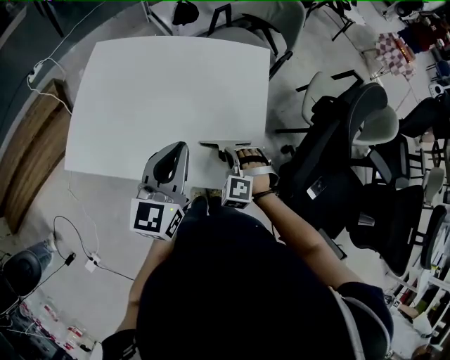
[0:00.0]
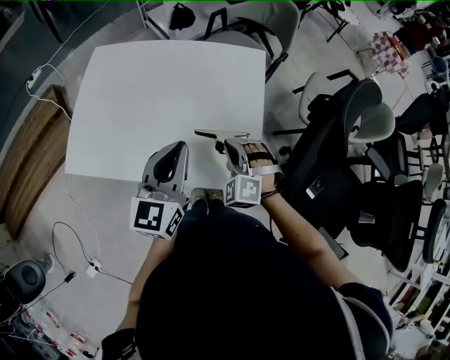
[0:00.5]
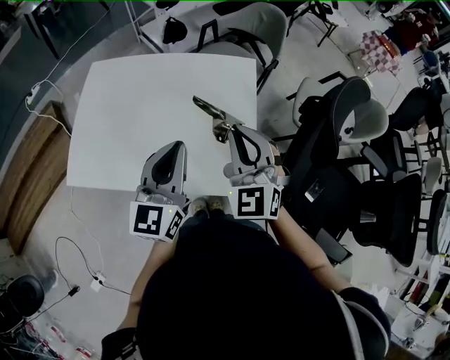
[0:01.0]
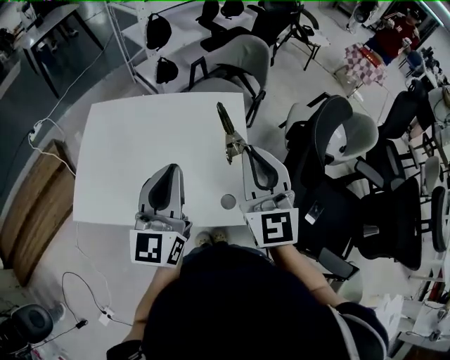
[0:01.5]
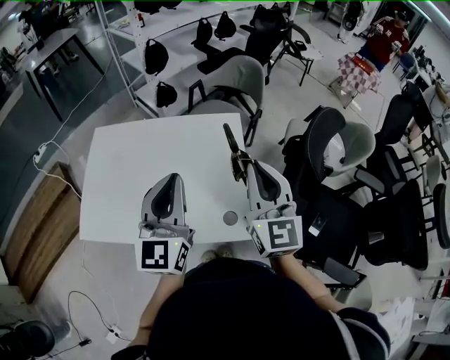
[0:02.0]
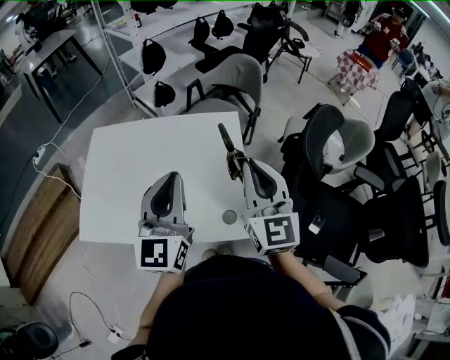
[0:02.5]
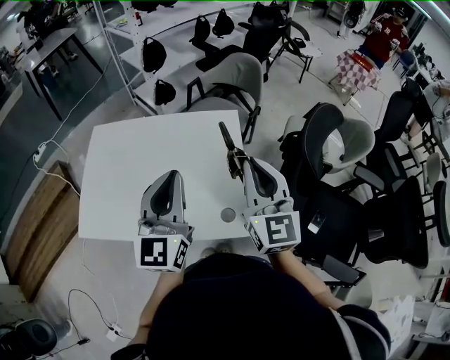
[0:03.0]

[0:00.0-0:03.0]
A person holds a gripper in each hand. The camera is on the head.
0:00.0 to 0:01.5: The right gripper moves upward, approximately 35 cm, and points its fingers about 50 degrees further upward; the left gripper goes some 10 cm upward.
0:01.5 to 0:03.0: The grippers make only small movements.

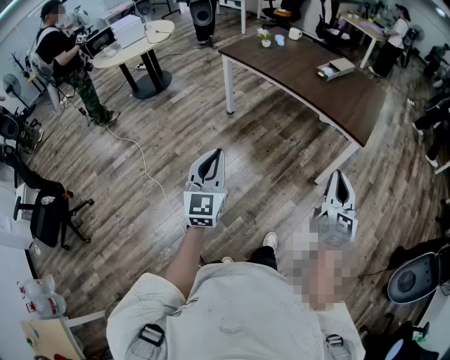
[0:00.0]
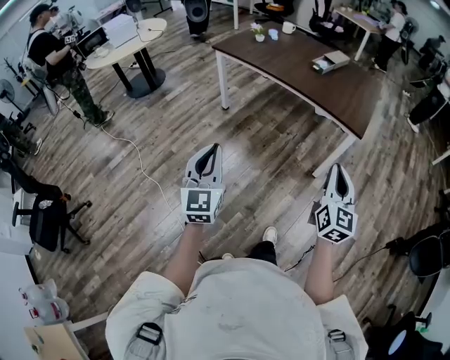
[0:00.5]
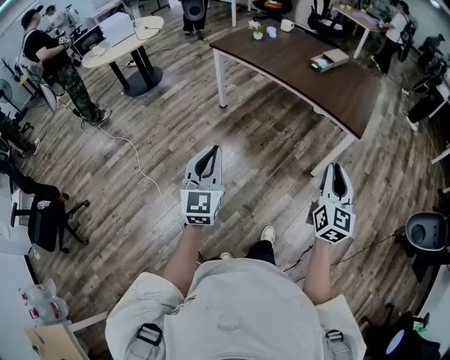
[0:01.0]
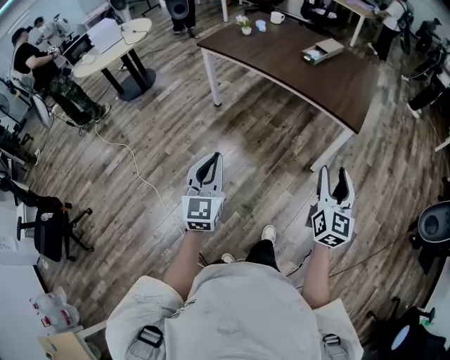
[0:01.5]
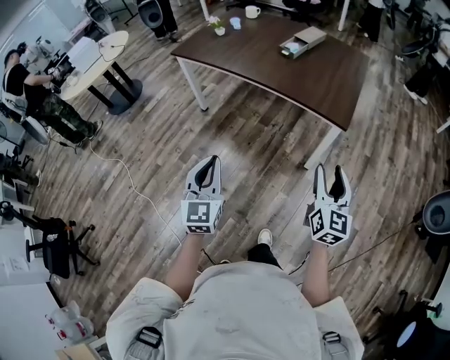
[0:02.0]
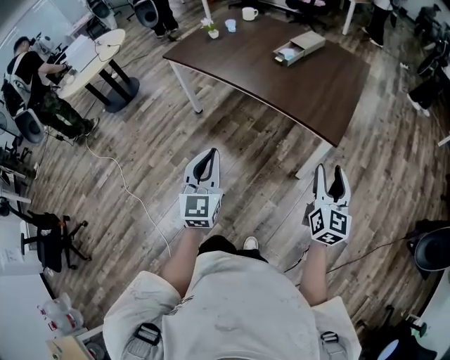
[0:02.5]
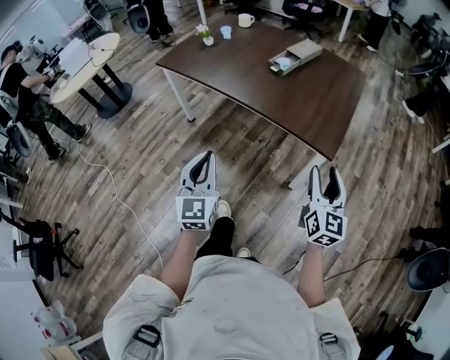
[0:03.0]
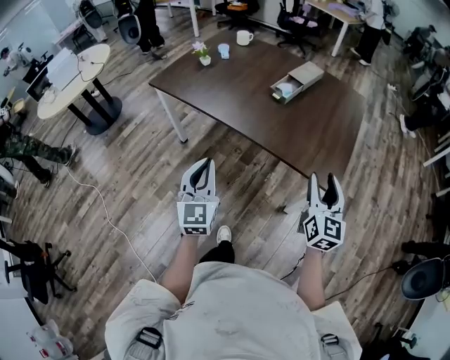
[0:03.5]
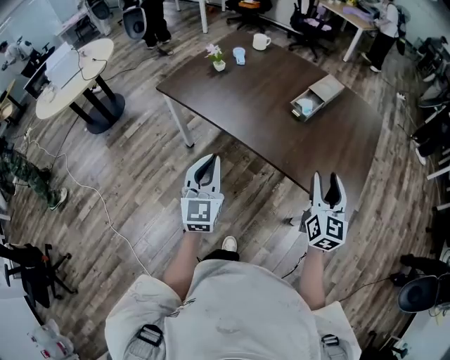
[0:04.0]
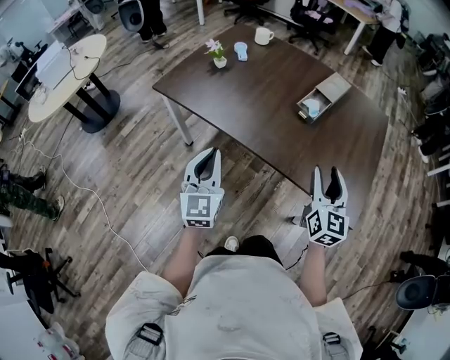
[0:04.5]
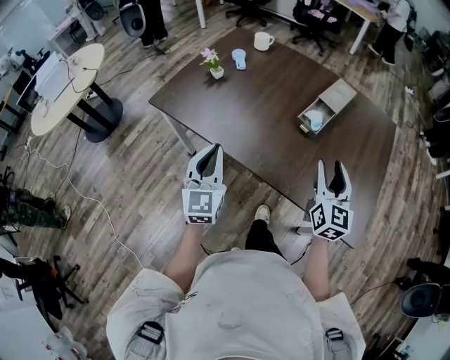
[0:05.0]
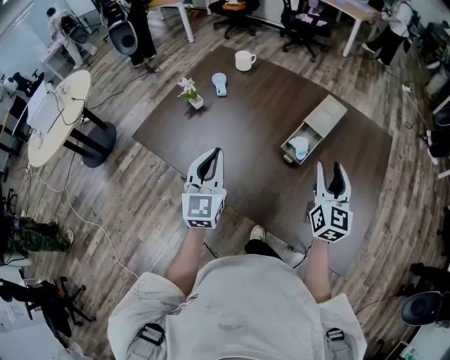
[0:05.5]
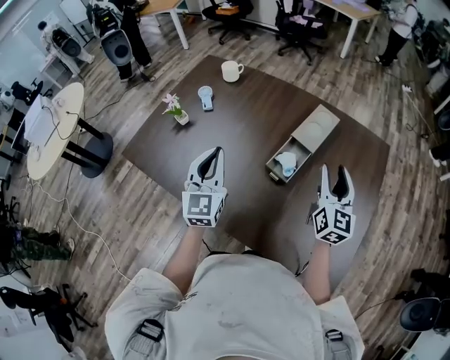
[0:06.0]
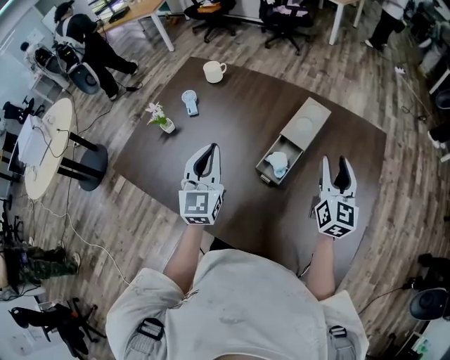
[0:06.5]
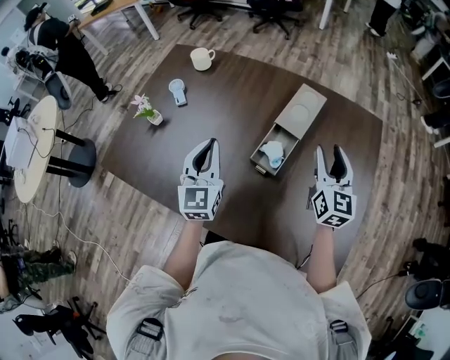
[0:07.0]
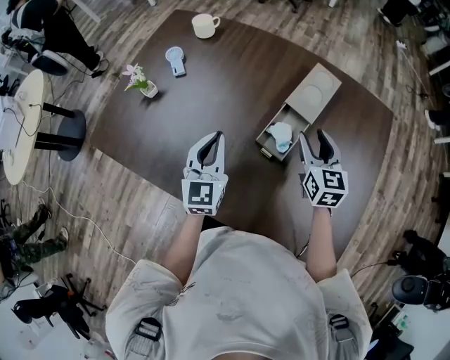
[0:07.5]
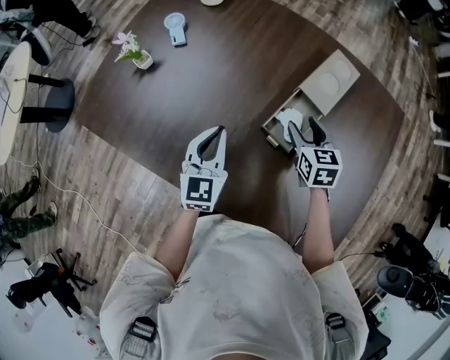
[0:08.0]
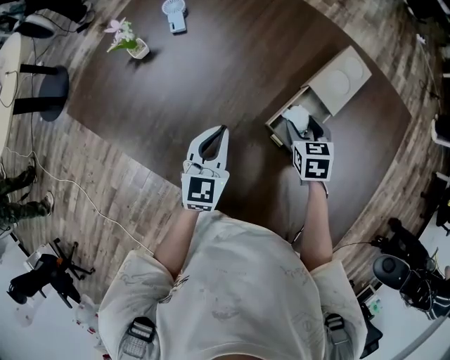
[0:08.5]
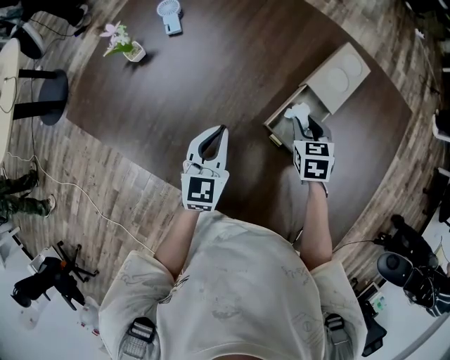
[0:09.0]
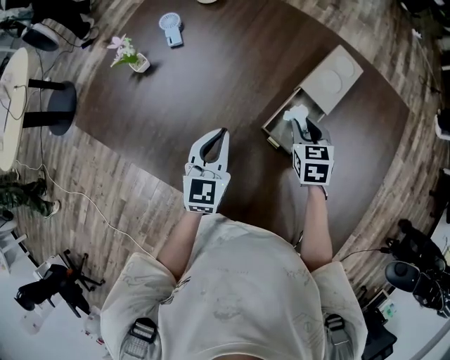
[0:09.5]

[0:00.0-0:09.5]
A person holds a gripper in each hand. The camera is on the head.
0:00.0 to 0:02.0: The right gripper travels to the right and forward by about 20 cm, and opens up. Meanwhile the left gripper travels forward and to the right by roughly 20 cm.
0:02.0 to 0:04.0: The pair of grippers is taken forward, about 40 cm.
0:04.0 to 0:05.5: The grippers both shift forward by about 30 cm.
0:05.5 to 0:07.5: The right gripper shifts some 20 cm forward and downward, and swivels about 20 degrees; the left gripper travels forward, downward and to the right by approximately 20 cm.
0:07.5 to 0:09.5: The right gripper goes approximately 10 cm downward, changes its angle by roughly 20 degrees, and closes its fingers. Meanwhile the left gripper goes approximately 5 cm downward.

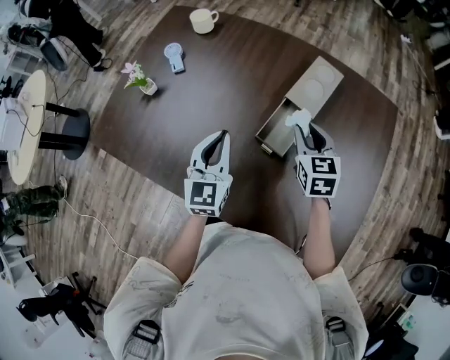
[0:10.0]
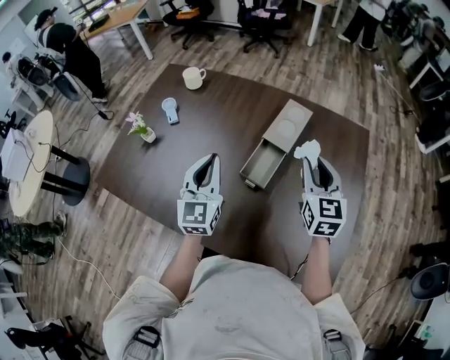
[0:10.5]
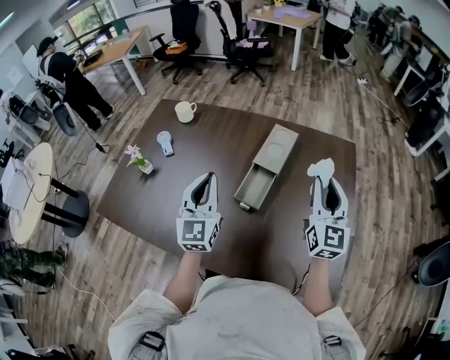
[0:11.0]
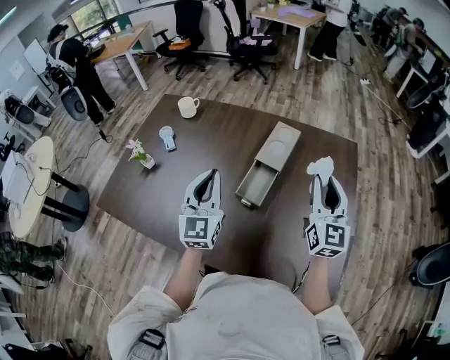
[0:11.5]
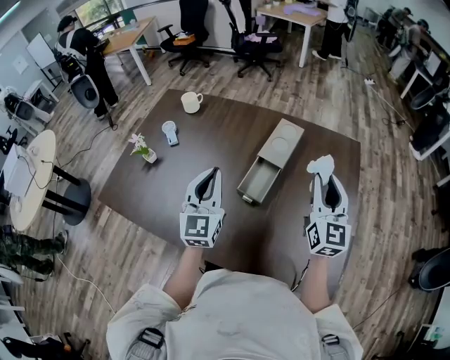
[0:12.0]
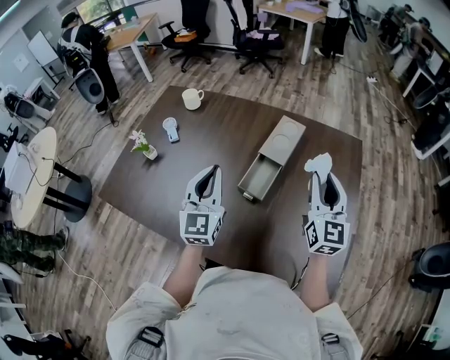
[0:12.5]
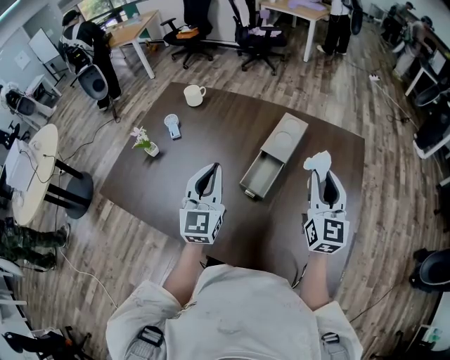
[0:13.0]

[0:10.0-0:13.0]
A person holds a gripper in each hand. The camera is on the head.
0:10.0 to 0:11.5: The right gripper travels upward, to the right and backward by some 25 cm, and points its fingers some 40 degrees further upward, while the left gripper goes roughly 10 cm upward.
0:11.5 to 0:13.0: The grippers stay close to where they were, moving slightly.

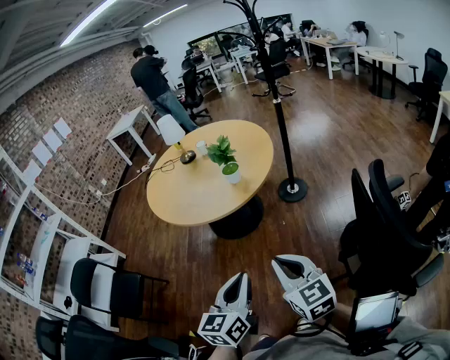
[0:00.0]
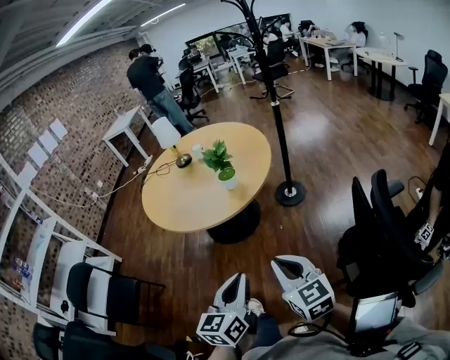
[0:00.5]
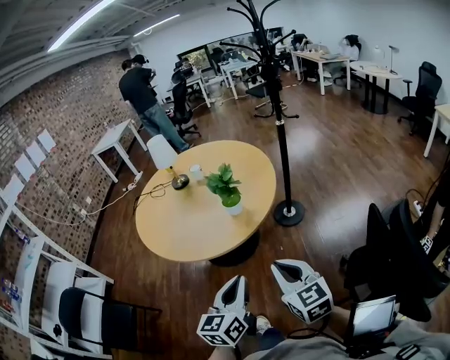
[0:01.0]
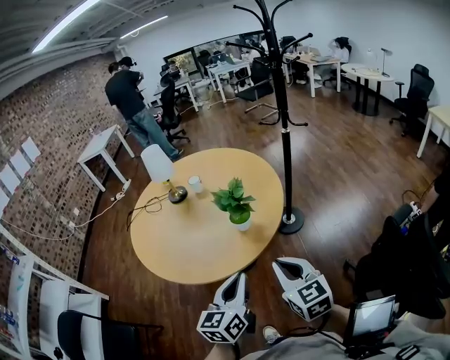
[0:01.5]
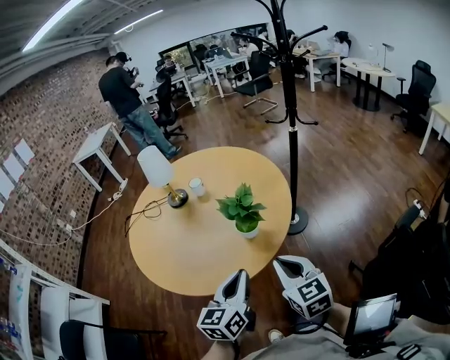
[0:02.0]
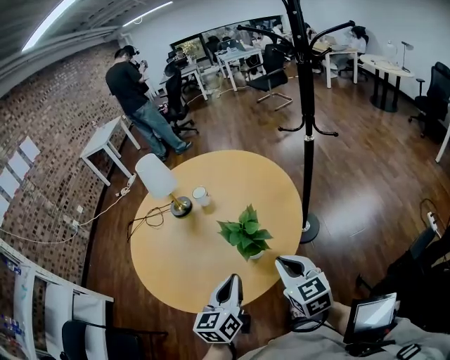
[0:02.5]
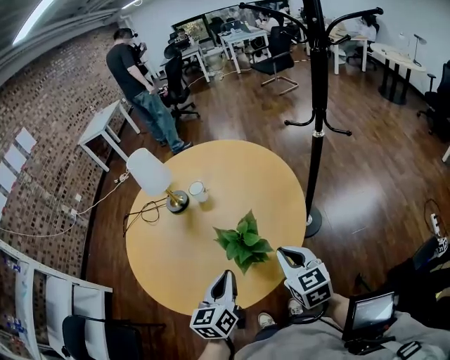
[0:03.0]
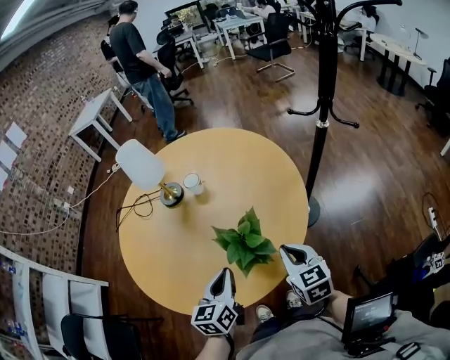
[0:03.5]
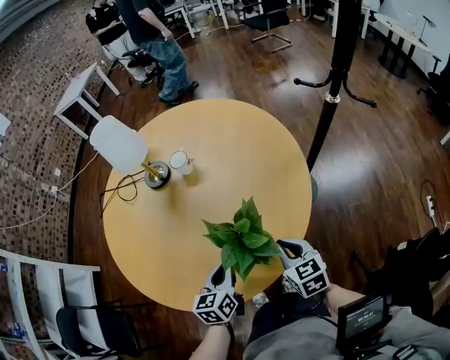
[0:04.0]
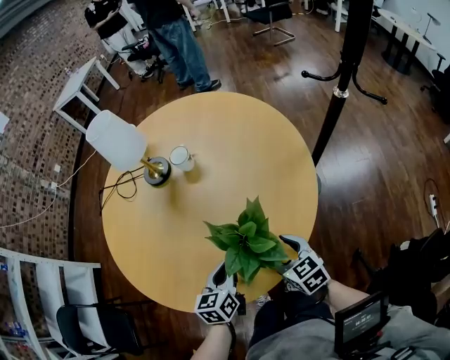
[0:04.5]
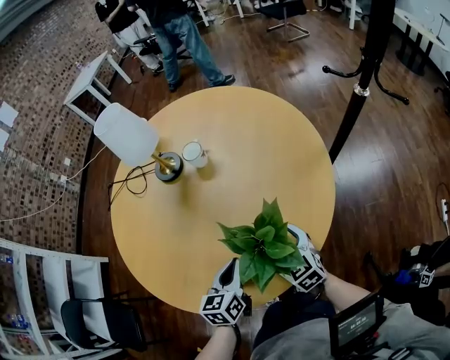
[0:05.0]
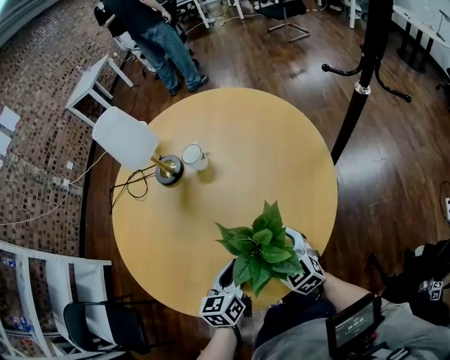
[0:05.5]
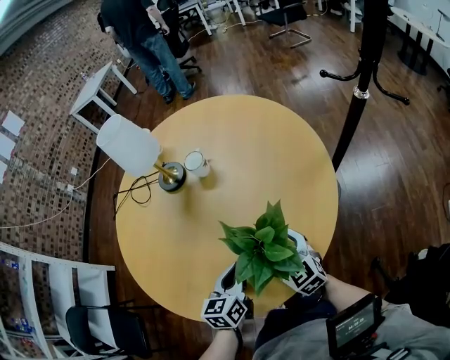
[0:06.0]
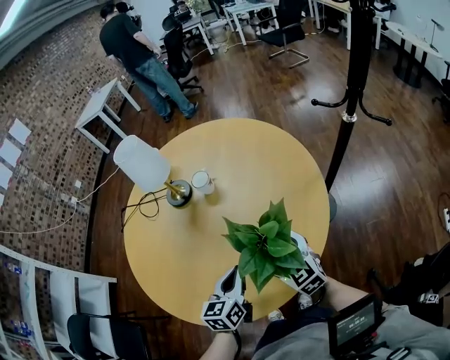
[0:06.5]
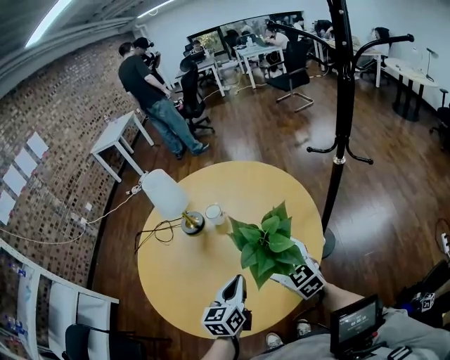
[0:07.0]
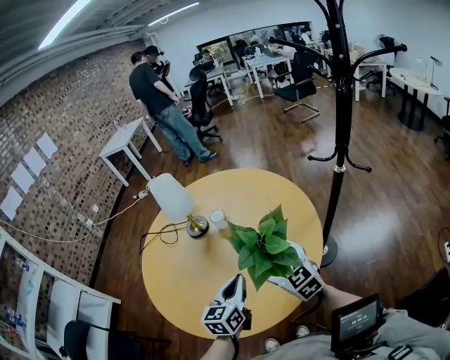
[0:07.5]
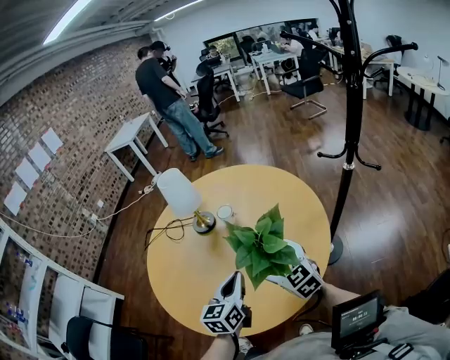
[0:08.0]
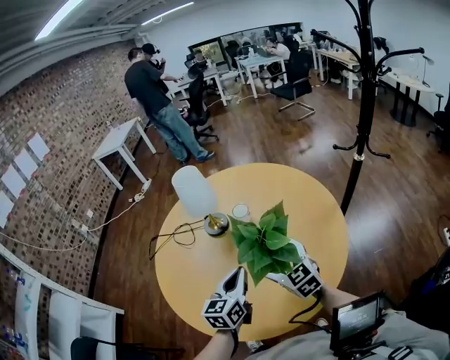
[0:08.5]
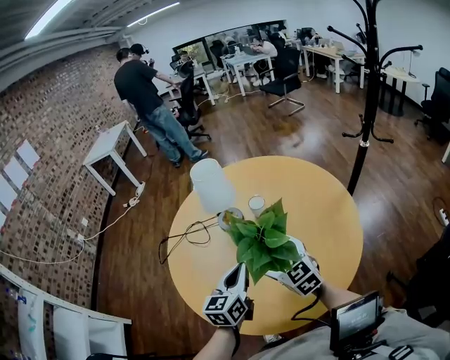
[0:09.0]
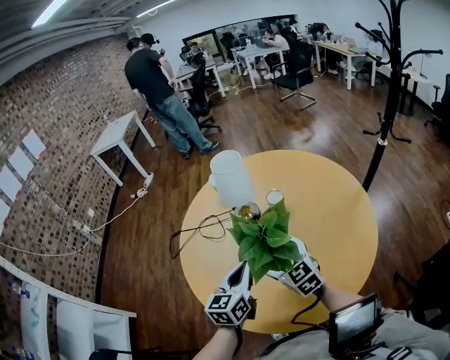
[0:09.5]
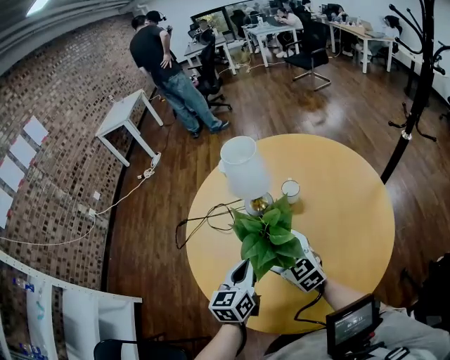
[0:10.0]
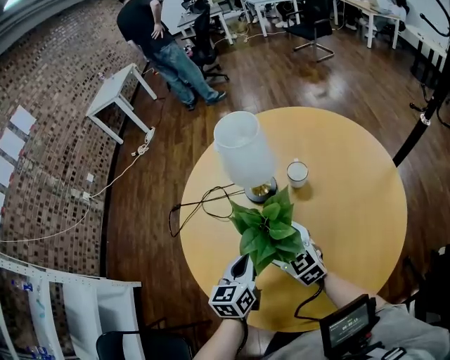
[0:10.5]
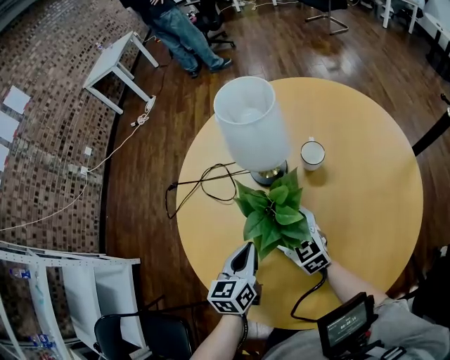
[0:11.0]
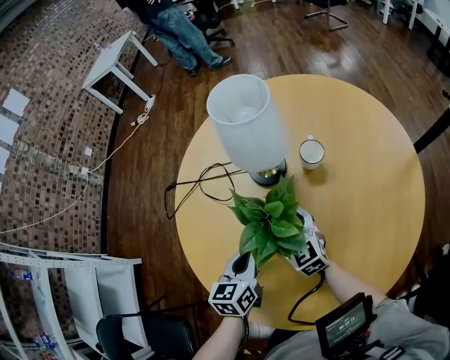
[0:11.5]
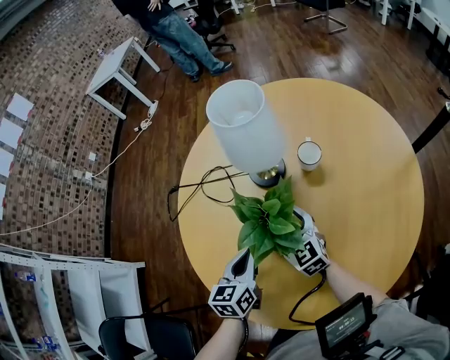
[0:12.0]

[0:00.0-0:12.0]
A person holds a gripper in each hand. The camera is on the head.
0:00.0 to 0:02.0: Both grippers move forward, roughly 40 cm.
0:02.0 to 0:04.0: The grippers both shift forward and downward by roughly 30 cm. The left gripper swivels some 20 degrees.
0:04.0 to 0:06.0: The right gripper heads to the left and forward, covering approximately 10 cm, swivels about 30 degrees, and opens its fingers.
0:06.0 to 0:08.0: Both grippers travel together upward, about 20 cm.
0:08.0 to 0:10.0: The left gripper moves to the left and forward, roughly 30 cm; the right gripper heads to the left, covering about 30 cm.
0:10.0 to 0:12.0: The left gripper goes about 10 cm downward. Meanwhile the right gripper heads downward and forward, covering roughly 15 cm.
